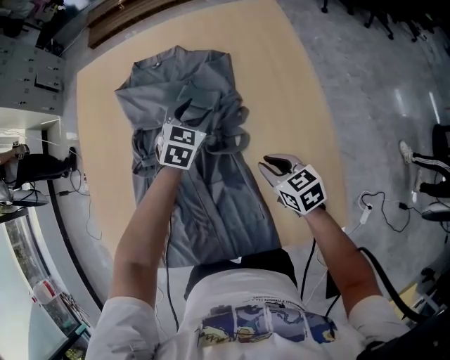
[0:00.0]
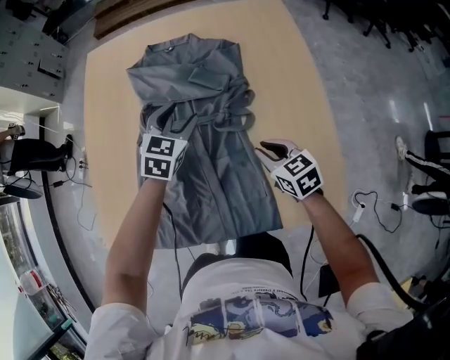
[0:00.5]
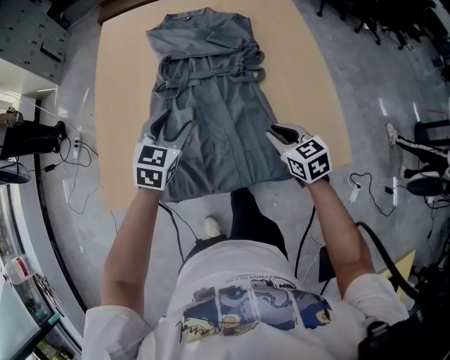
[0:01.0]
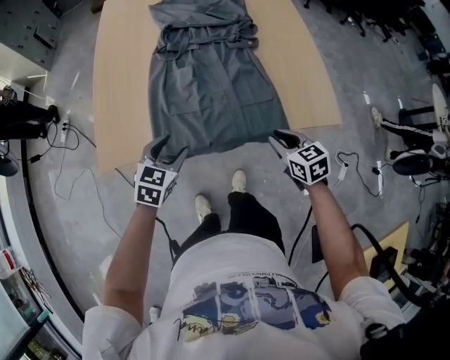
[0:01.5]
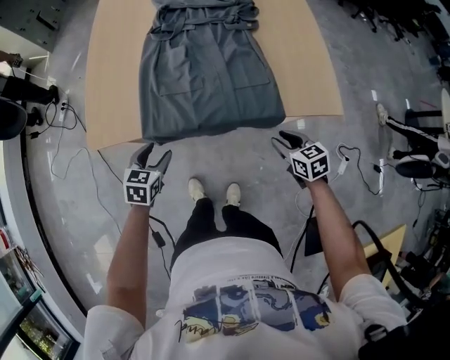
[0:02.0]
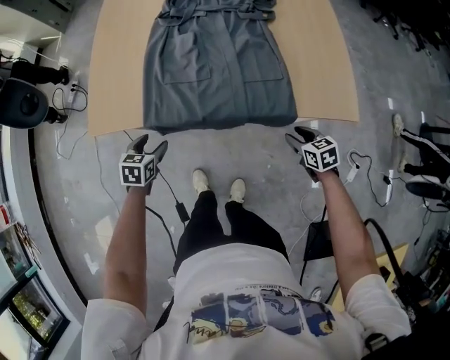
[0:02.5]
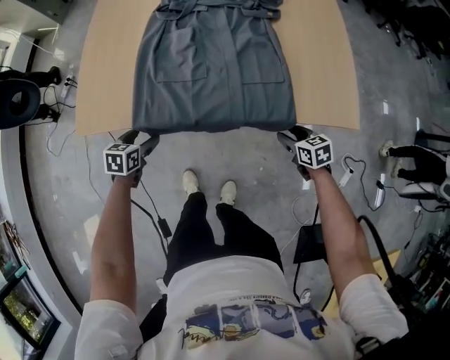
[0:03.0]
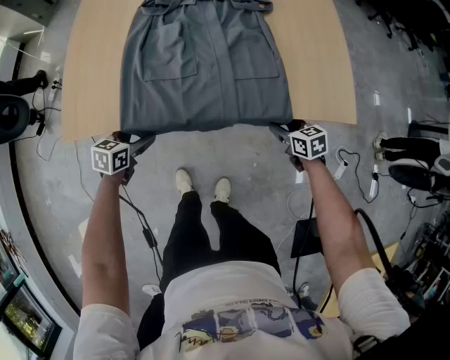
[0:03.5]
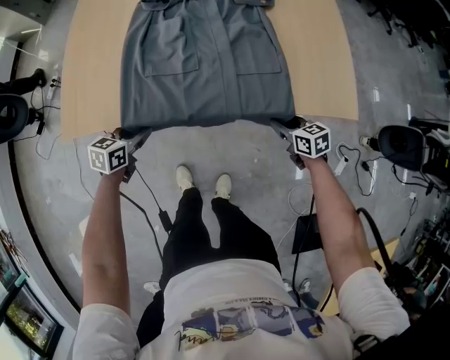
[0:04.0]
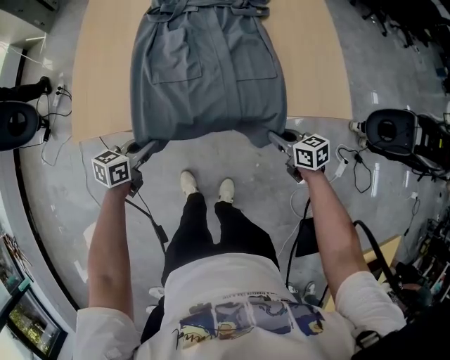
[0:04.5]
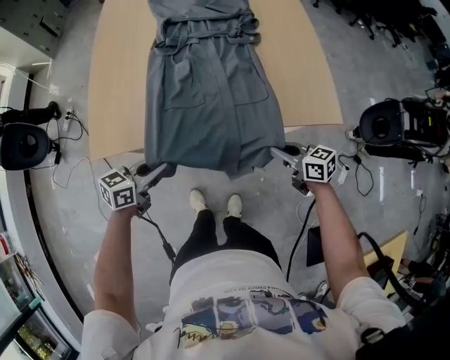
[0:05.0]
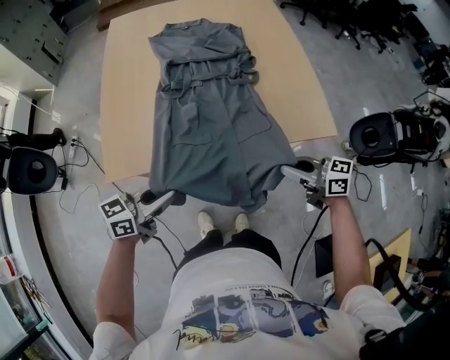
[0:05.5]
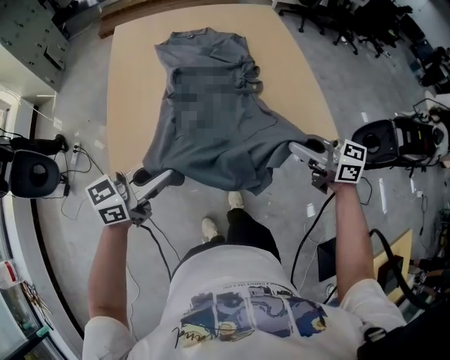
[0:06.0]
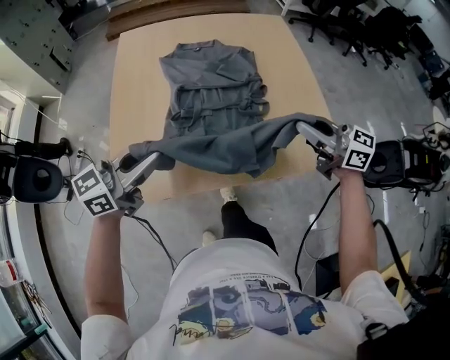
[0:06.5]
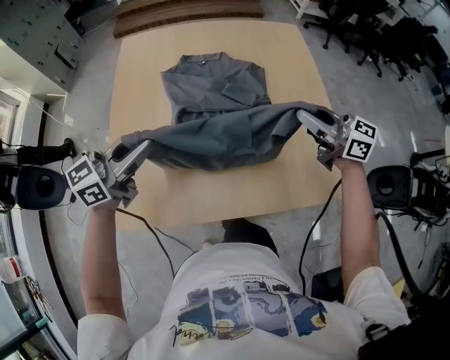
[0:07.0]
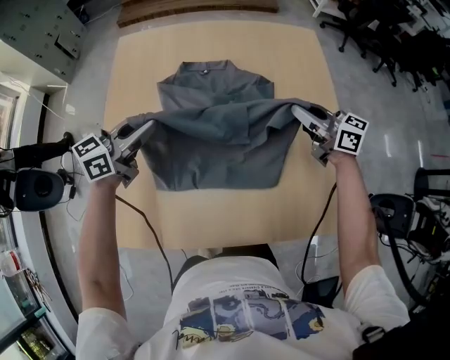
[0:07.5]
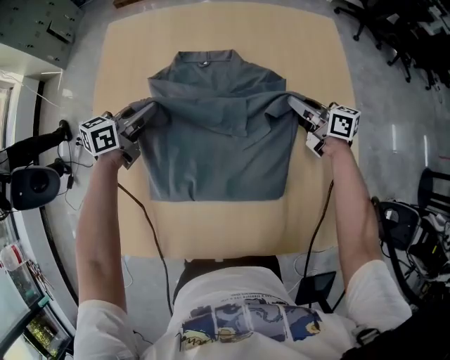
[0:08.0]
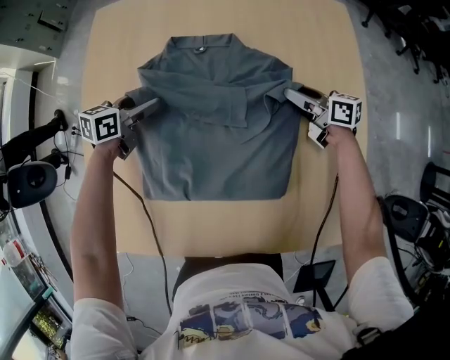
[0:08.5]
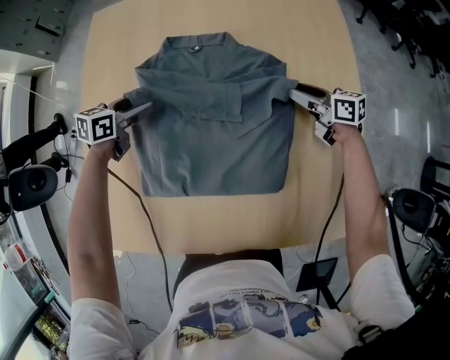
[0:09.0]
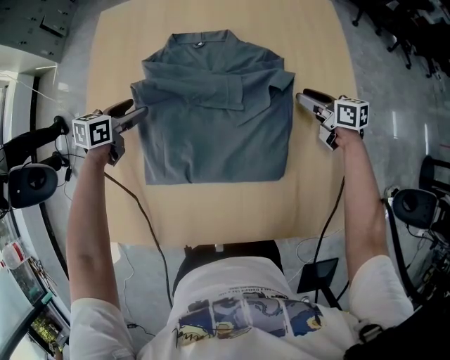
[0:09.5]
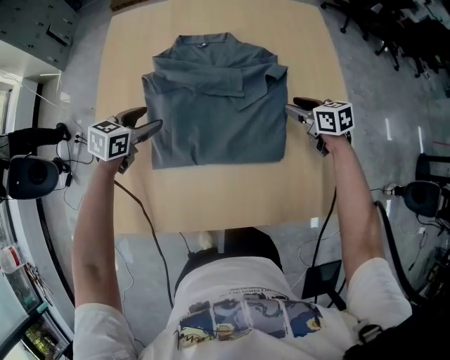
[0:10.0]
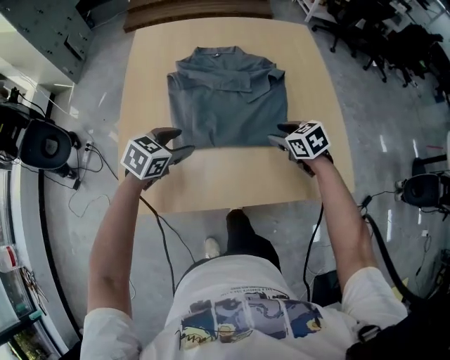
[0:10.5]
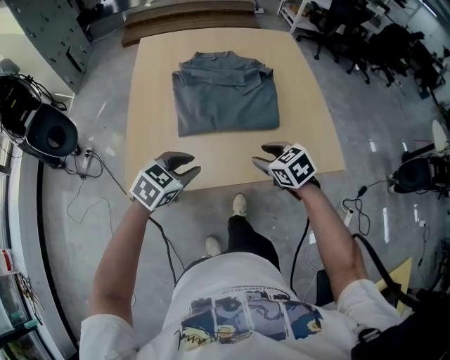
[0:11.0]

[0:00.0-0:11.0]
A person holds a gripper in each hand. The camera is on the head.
0:00.0 to 0:02.0: The right gripper shifts some 35 cm backward; the left gripper goes roughly 60 cm backward and to the left, and swivels some 30 degrees.
0:02.0 to 0:03.5: The left gripper goes some 10 cm downward, while the right gripper goes approximately 15 cm downward and forward.
0:03.5 to 0:05.5: The two grippers go some 30 cm upward. The right gripper tips its fingers upward by some 30 degrees, and closes up. The left gripper points its fingers approximately 40 degrees further upward, and closes up.
0:05.5 to 0:07.5: The pair of grippers is taken roughly 50 cm.
0:07.5 to 0:09.0: Both grippers move downward and forward, about 25 cm. The left gripper turns by approximately 30 degrees, and opens up. The right gripper rotates roughly 30 degrees, and opens its fingers.
0:09.0 to 0:11.0: The two grippers travel together, backward, roughly 50 cm. The left gripper swivels roughly 40 degrees, and closes up. Meanwhile the right gripper changes its angle by about 40 degrees.

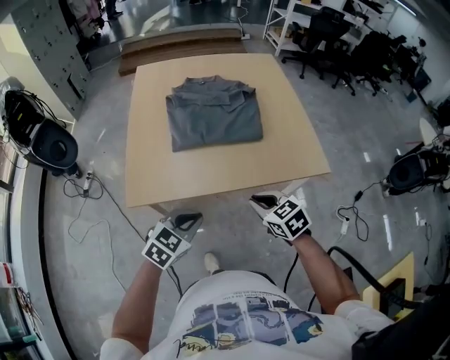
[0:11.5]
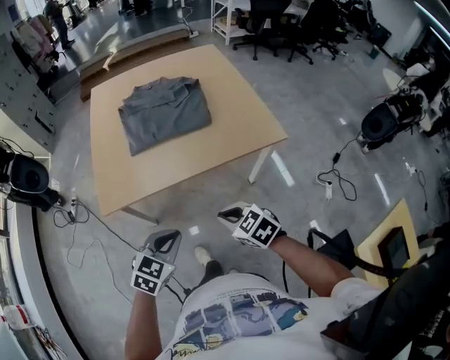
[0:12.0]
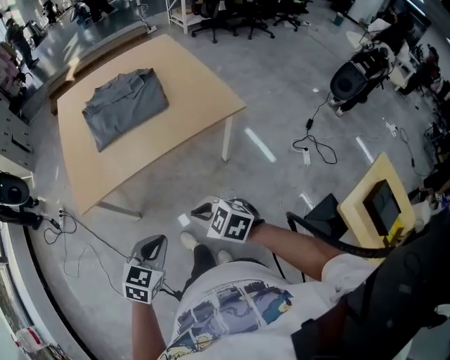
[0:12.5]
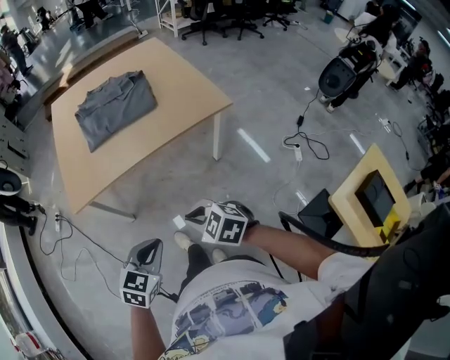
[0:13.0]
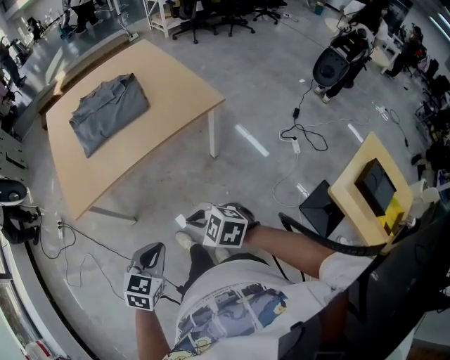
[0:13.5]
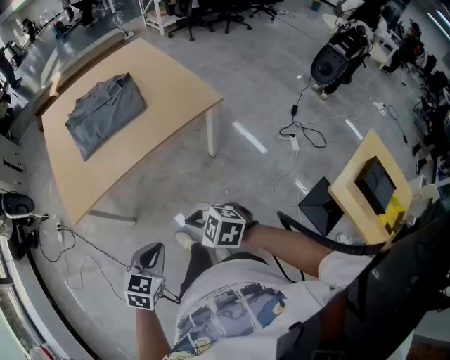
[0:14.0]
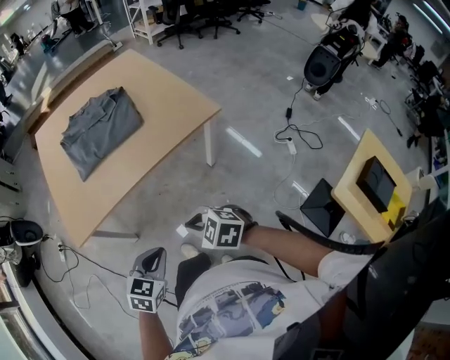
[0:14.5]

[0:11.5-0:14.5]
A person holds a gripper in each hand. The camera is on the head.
0:11.5 to 0:13.0: The two grippers go some 25 cm backward.
0:13.0 to 0:14.5: The grippers both shift forward by some 5 cm.

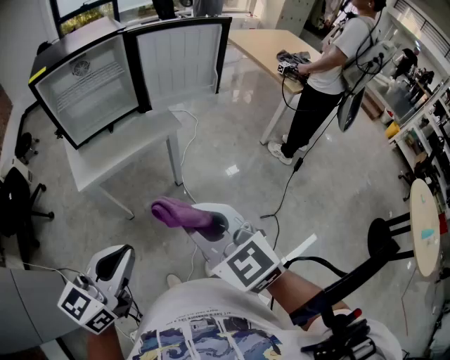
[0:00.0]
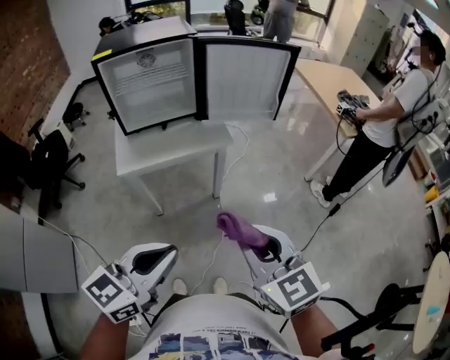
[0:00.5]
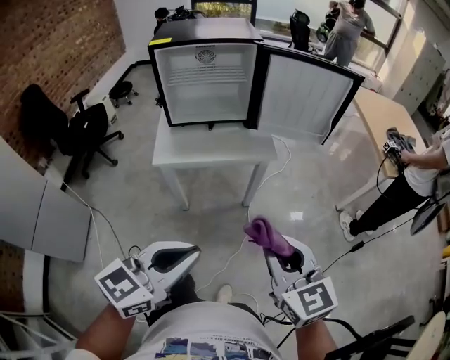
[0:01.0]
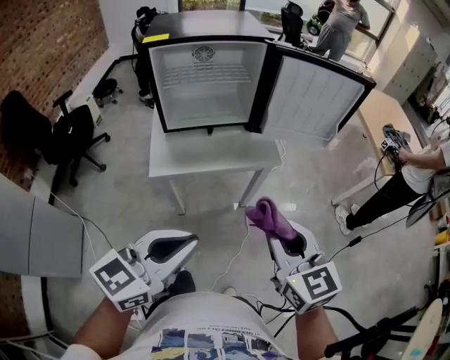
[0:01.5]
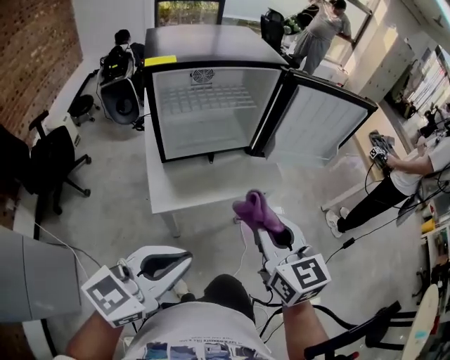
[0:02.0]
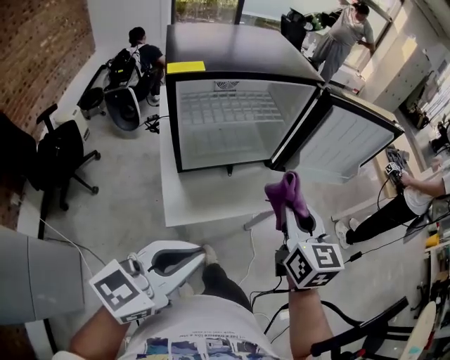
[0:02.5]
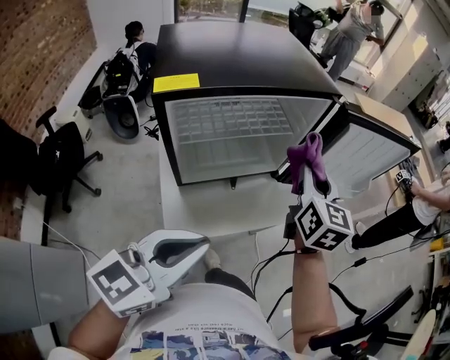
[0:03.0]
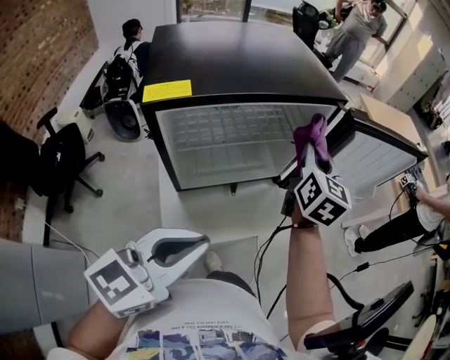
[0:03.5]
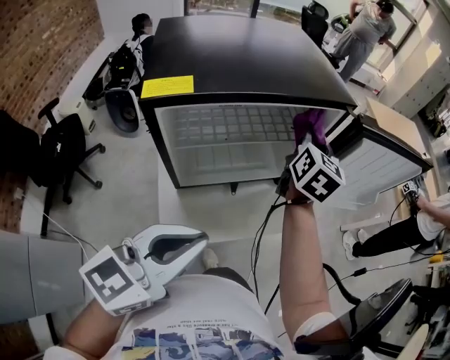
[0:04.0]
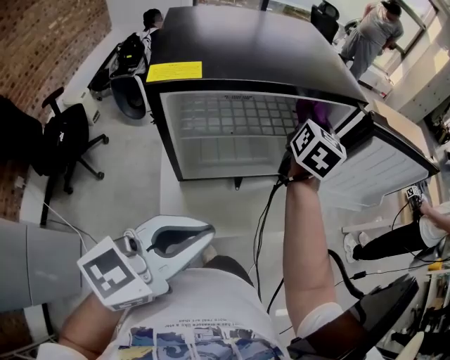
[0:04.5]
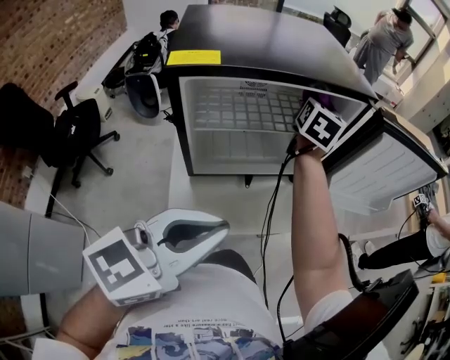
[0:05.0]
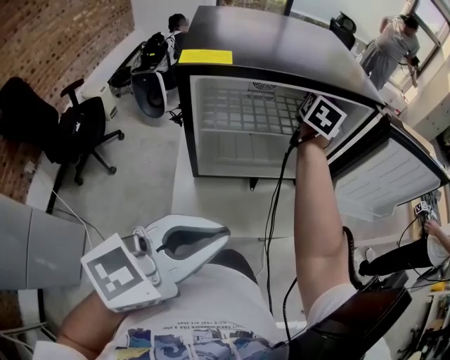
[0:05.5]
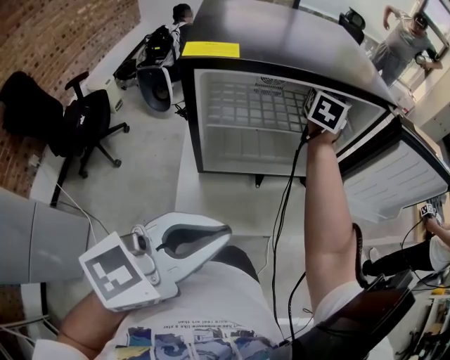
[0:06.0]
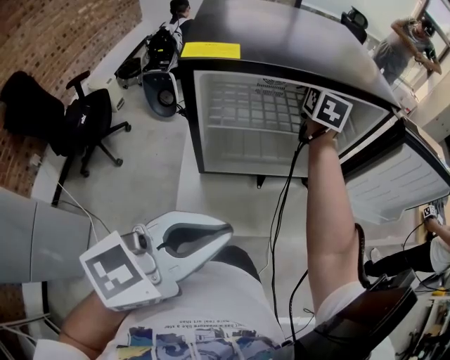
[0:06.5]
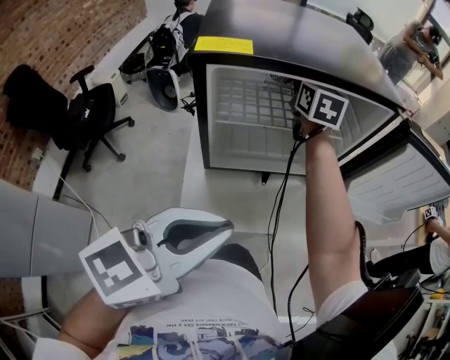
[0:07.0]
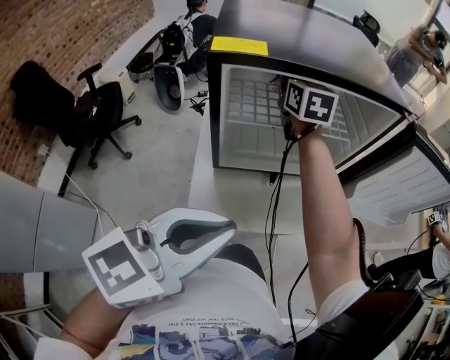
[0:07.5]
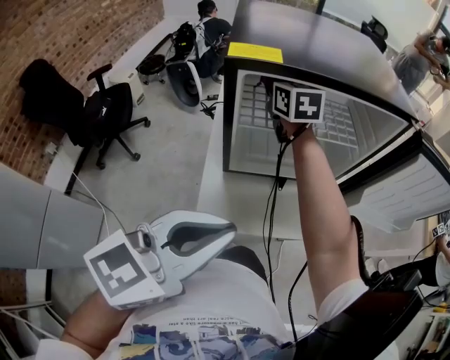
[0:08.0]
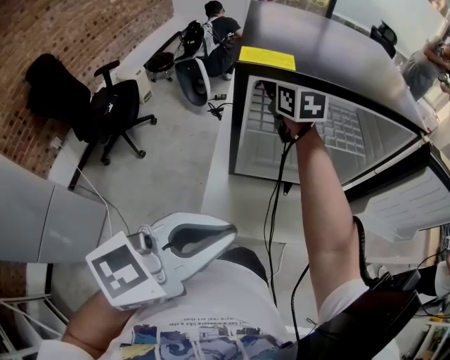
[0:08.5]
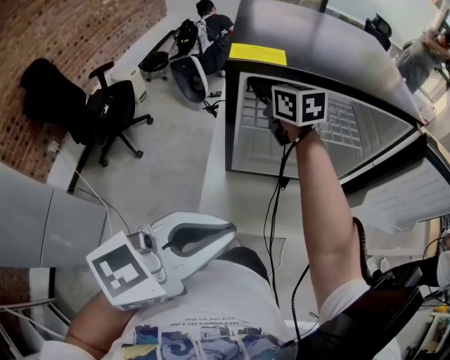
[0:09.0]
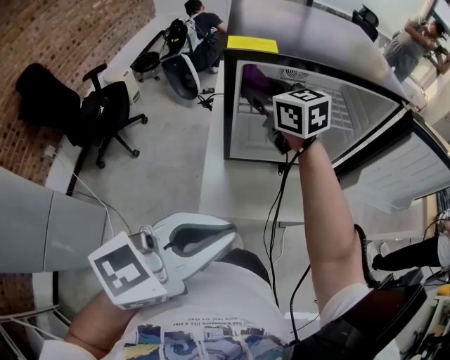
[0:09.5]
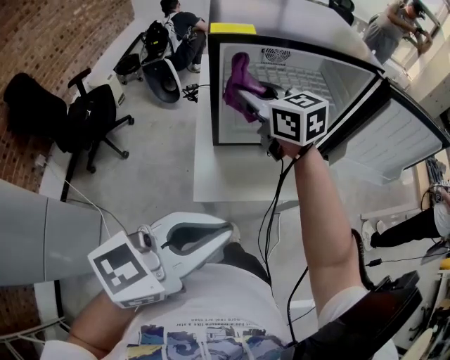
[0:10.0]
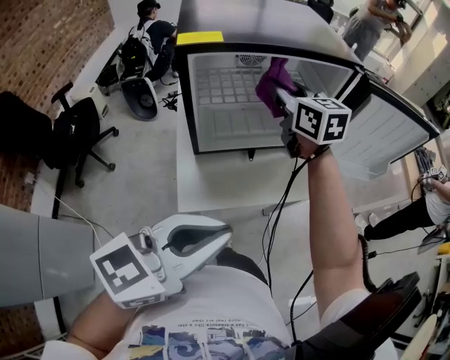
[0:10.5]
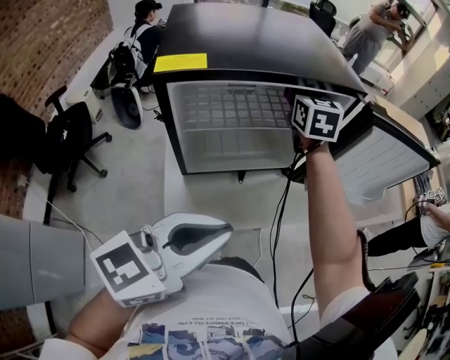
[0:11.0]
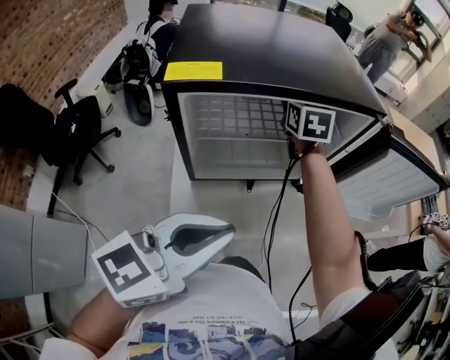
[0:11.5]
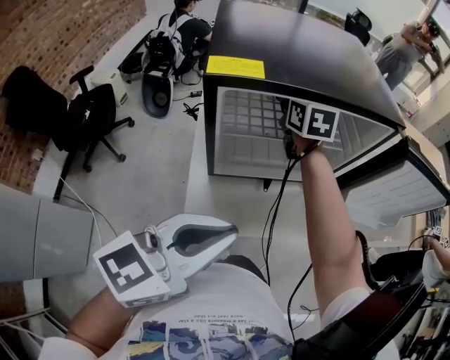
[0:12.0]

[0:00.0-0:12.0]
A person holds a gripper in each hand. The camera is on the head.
0:00.0 to 0:02.0: Both grippers travel together forward and to the left, some 20 cm.
0:02.0 to 0:04.0: The left gripper goes approximately 20 cm forward and to the left, while the right gripper is displaced forward by roughly 40 cm, and swivels about 30 degrees.
0:04.0 to 0:06.0: The right gripper shifts some 15 cm to the left and forward.
0:06.0 to 0:08.0: The right gripper moves to the left and backward, roughly 25 cm, and turns by about 40 degrees.
0:08.0 to 0:10.0: The right gripper moves backward, some 20 cm, and rotates approximately 20 degrees; the left gripper goes some 10 cm backward.
0:10.0 to 0:12.0: The right gripper moves roughly 20 cm, and changes its angle by roughly 30 degrees; the left gripper ends up approximately 10 cm from where it was.
